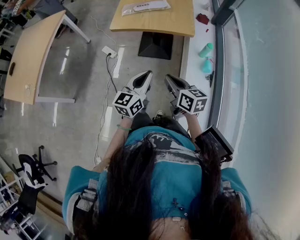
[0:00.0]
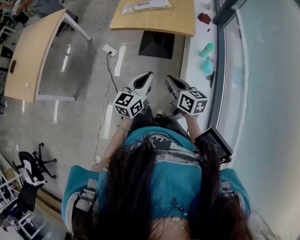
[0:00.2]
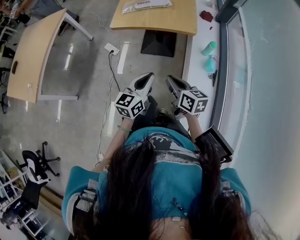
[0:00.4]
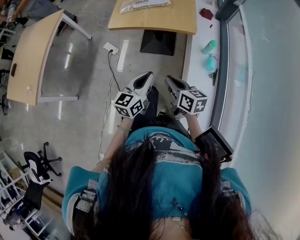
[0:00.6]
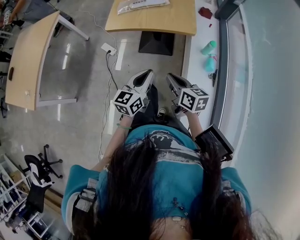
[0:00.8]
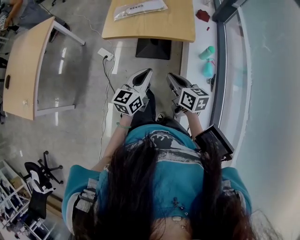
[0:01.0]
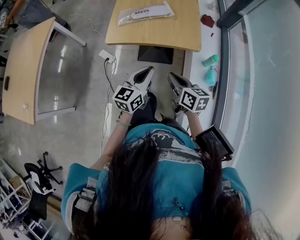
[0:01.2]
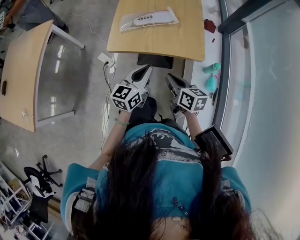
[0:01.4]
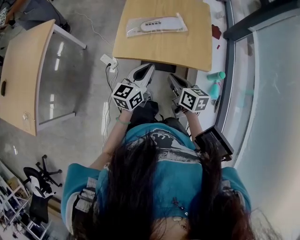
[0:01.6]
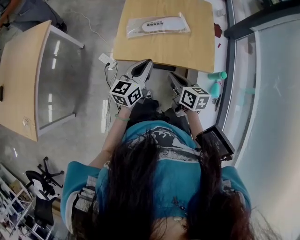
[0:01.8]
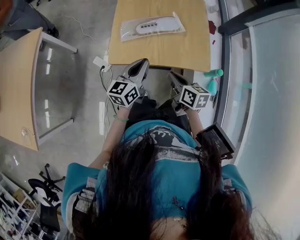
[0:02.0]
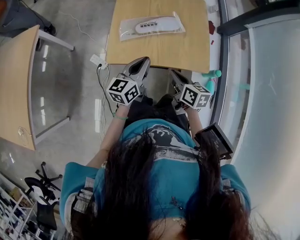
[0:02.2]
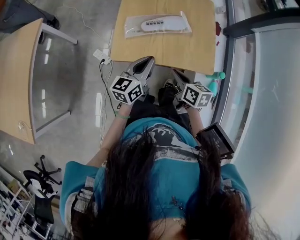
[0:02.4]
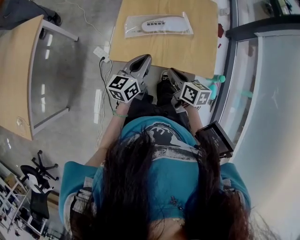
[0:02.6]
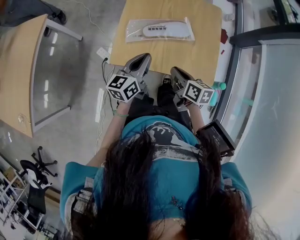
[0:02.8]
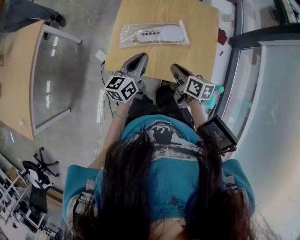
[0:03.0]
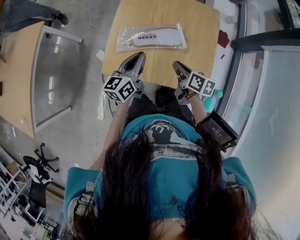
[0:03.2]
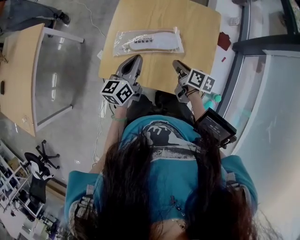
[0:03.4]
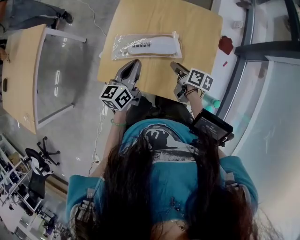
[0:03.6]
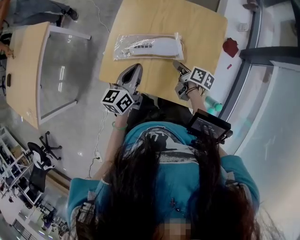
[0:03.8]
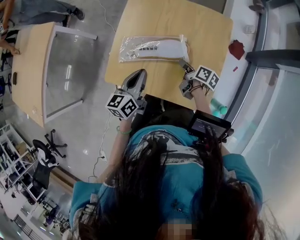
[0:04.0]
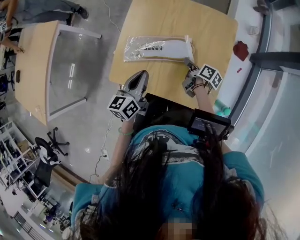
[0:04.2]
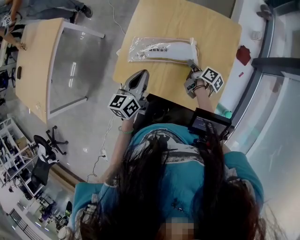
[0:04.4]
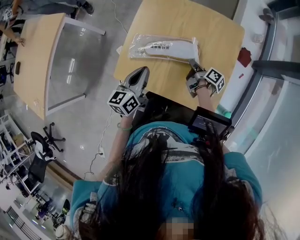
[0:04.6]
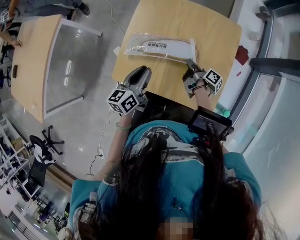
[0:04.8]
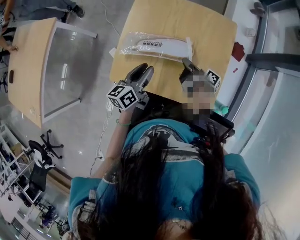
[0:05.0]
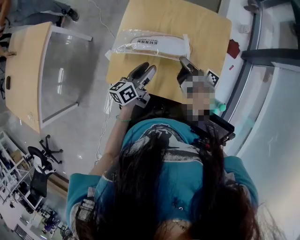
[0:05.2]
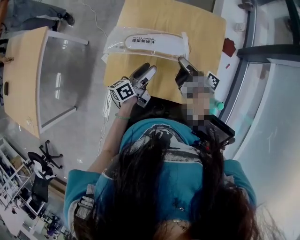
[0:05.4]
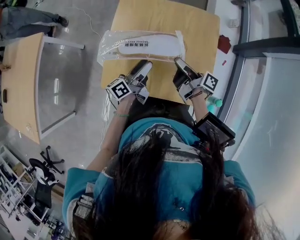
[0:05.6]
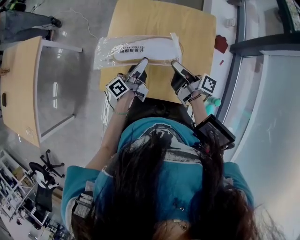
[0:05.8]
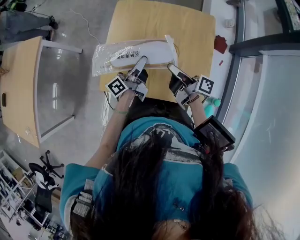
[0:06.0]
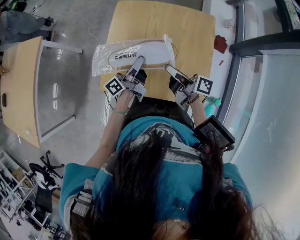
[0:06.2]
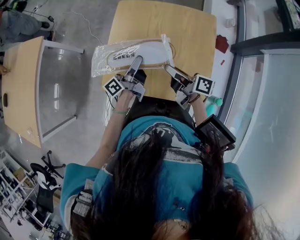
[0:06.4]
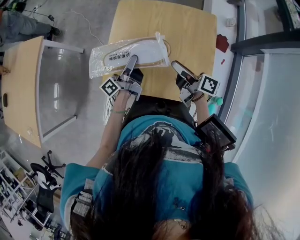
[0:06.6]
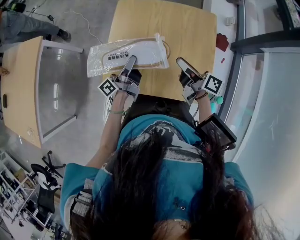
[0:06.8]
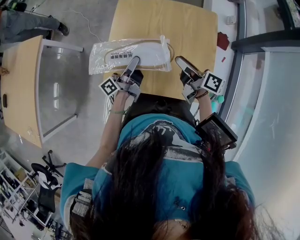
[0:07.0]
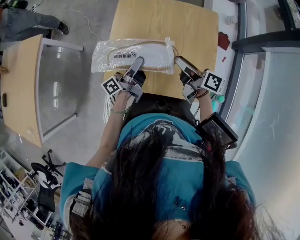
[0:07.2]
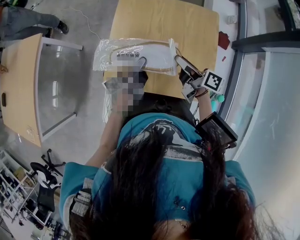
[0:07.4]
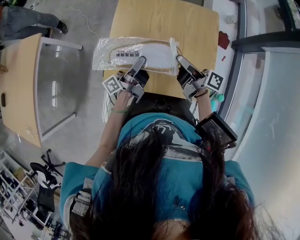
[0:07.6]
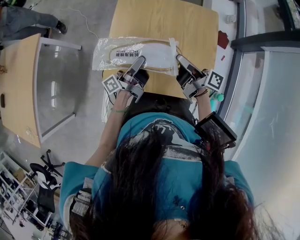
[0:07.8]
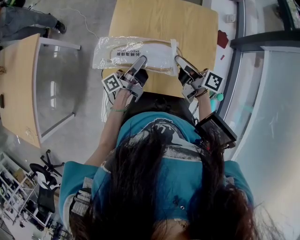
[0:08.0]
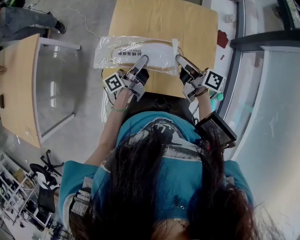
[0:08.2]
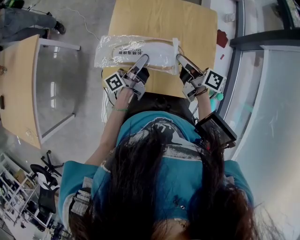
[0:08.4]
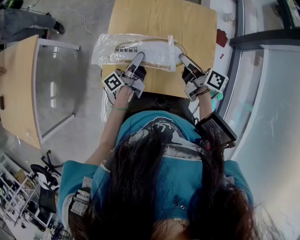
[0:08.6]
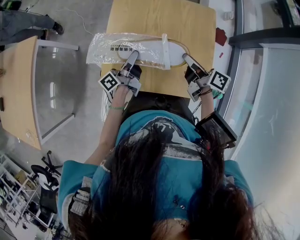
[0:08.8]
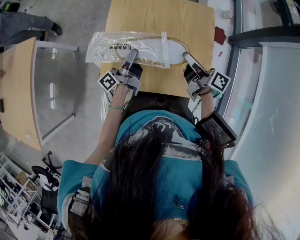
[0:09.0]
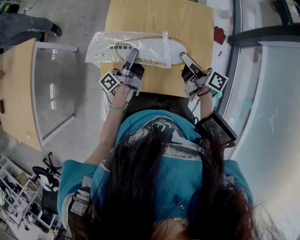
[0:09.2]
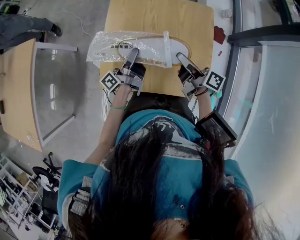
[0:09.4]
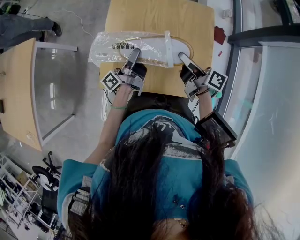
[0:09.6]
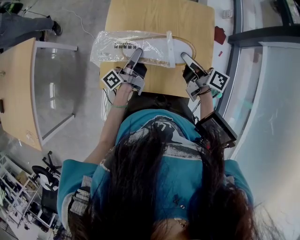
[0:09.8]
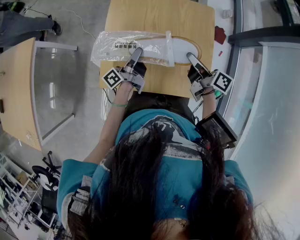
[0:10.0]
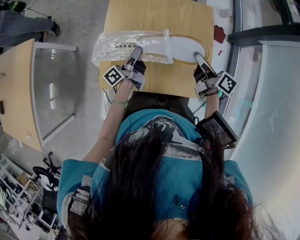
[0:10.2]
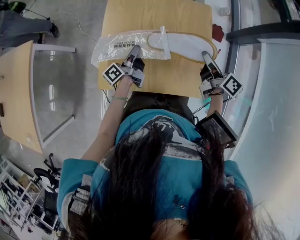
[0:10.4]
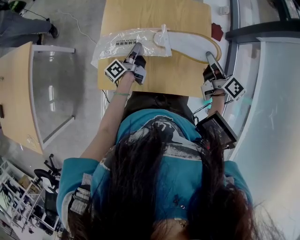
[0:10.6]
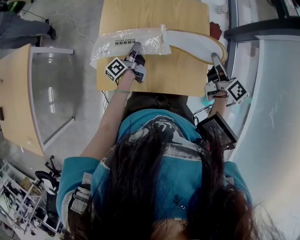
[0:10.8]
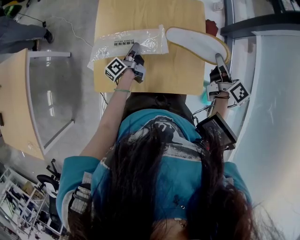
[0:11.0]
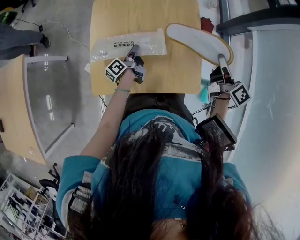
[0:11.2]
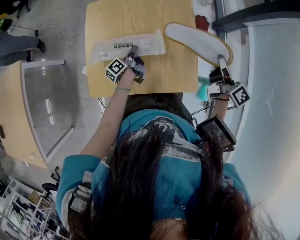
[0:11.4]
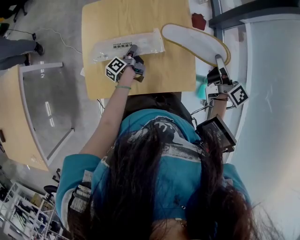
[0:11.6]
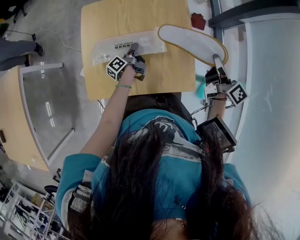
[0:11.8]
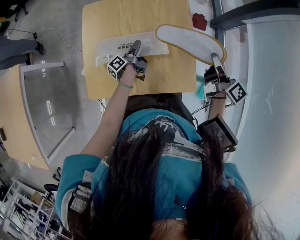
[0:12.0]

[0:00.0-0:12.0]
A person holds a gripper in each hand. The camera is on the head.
0:00.0 to 0:01.6: The grippers both shift forward by about 30 cm.
0:01.6 to 0:03.0: Both grippers travel together forward, some 20 cm.
0:03.0 to 0:04.4: The right gripper travels forward, downward and to the right by about 20 cm, and rotates roughly 30 degrees.
0:04.4 to 0:06.0: The right gripper heads upward, covering roughly 15 cm, and rotates about 30 degrees; the left gripper goes some 5 cm forward, rotates about 50 degrees, and opens.
0:06.0 to 0:07.6: The right gripper opens its fingers.
0:07.6 to 0:09.0: The right gripper closes.
0:09.0 to 0:10.4: The right gripper travels to the right by some 10 cm, and opens, then closes again. The left gripper shifts roughly 5 cm downward.
0:10.4 to 0:12.0: The right gripper shifts approximately 10 cm to the right. Meanwhile the left gripper shifts approximately 10 cm to the right and downward, rotates some 20 degrees, and opens its fingers.

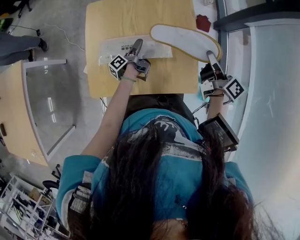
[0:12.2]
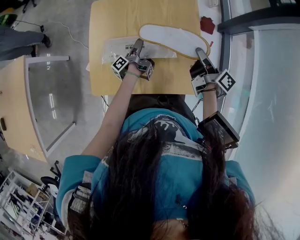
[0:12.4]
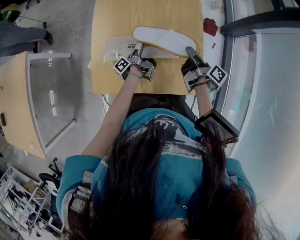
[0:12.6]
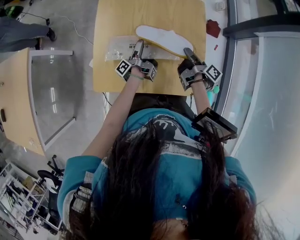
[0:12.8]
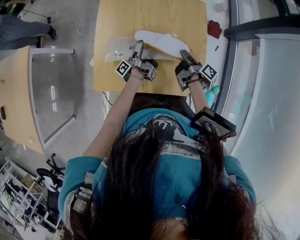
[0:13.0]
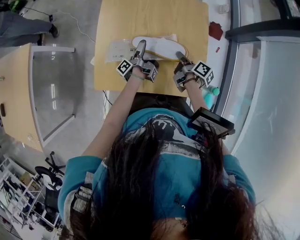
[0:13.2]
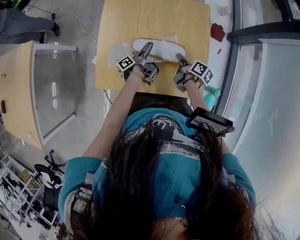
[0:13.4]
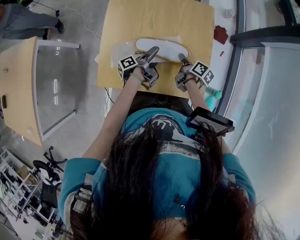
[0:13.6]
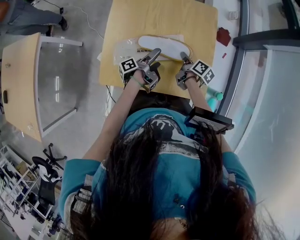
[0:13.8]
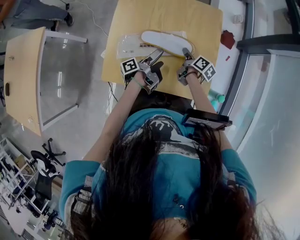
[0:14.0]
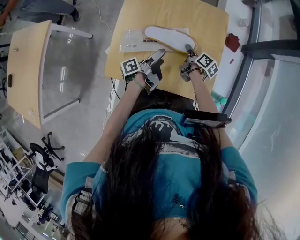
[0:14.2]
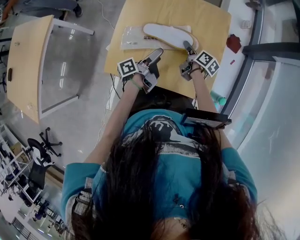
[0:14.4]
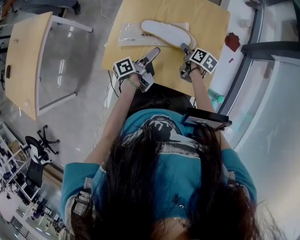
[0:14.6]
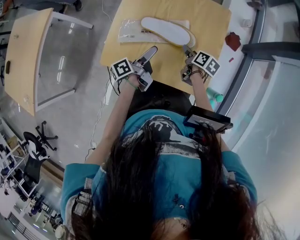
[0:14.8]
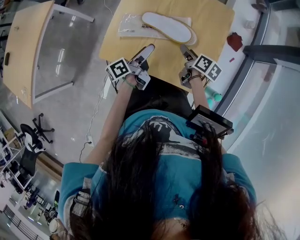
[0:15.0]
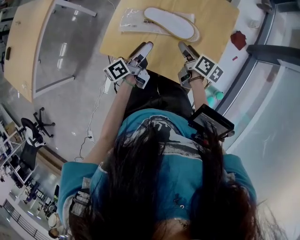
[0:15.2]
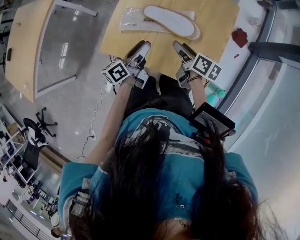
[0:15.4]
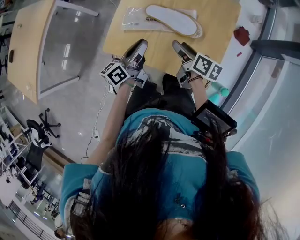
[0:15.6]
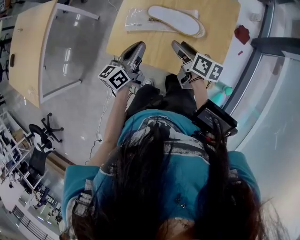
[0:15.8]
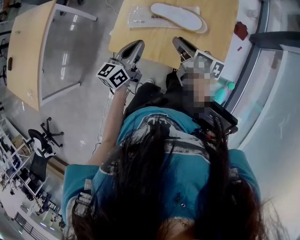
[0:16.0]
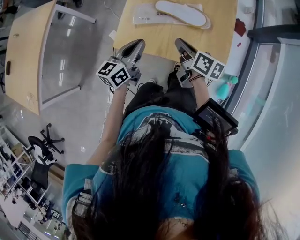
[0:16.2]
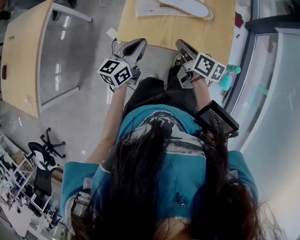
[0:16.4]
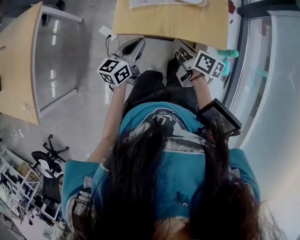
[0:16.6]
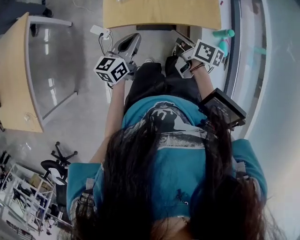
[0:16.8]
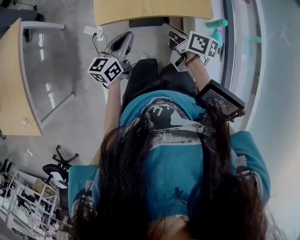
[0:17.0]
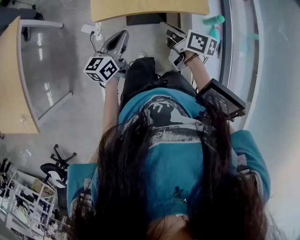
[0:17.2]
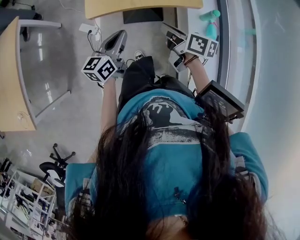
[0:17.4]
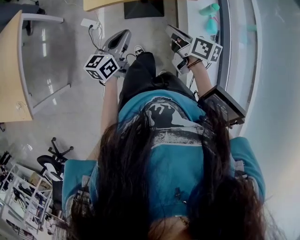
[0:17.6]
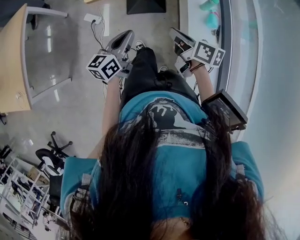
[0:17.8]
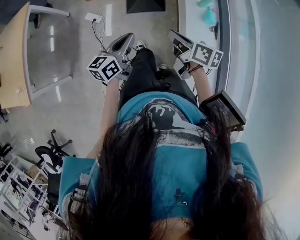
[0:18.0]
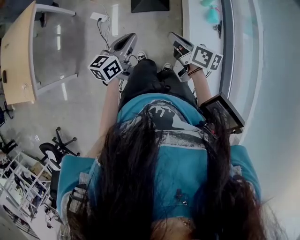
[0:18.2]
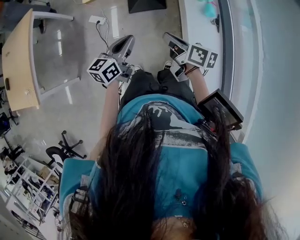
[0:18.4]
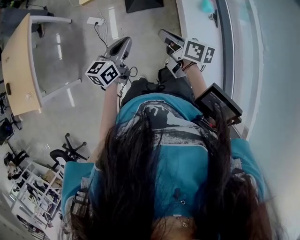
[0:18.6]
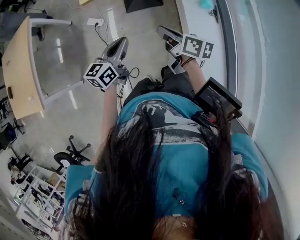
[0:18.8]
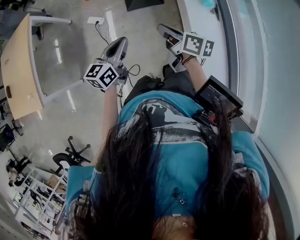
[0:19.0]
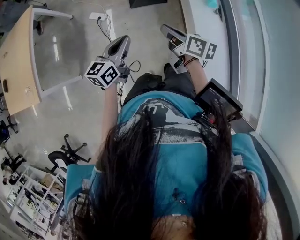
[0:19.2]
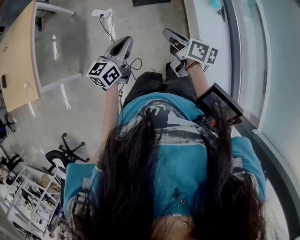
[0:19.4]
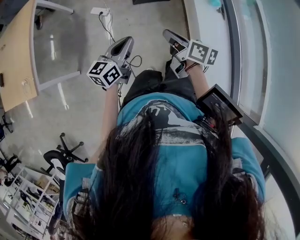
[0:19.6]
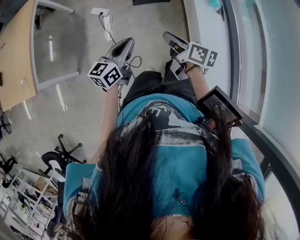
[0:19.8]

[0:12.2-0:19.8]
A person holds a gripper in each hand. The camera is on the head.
0:12.2 to 0:13.8: The right gripper moves downward and to the left, roughly 25 cm, and rotates some 30 degrees, while the left gripper travels backward by roughly 5 cm.
0:13.8 to 0:15.2: The right gripper is displaced upward by roughly 10 cm, rotates some 30 degrees, and opens up. The left gripper shifts some 10 cm upward, backward and to the left, and rotates some 40 degrees.
0:15.2 to 0:16.8: The grippers both shift backward and to the left by approximately 25 cm. The left gripper turns by approximately 50 degrees, and closes. Meanwhile the right gripper closes.
0:16.8 to 0:18.2: Both grippers travel together backward and to the right, roughly 30 cm.
0:18.2 to 0:19.8: The two grippers go approximately 25 cm backward and to the left.

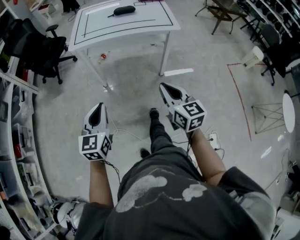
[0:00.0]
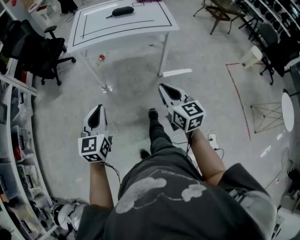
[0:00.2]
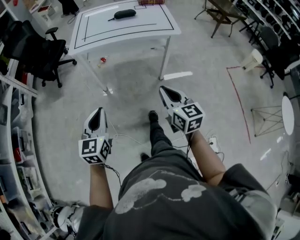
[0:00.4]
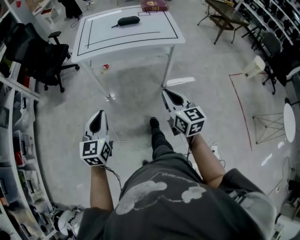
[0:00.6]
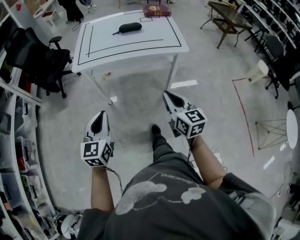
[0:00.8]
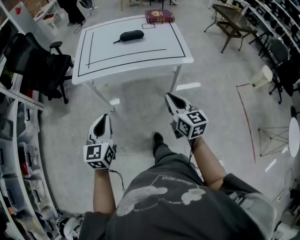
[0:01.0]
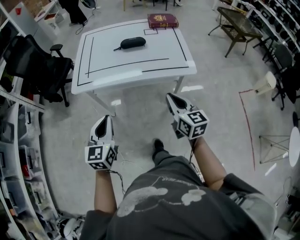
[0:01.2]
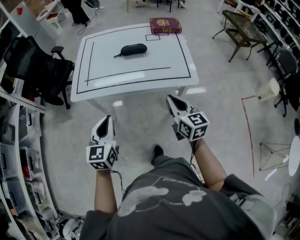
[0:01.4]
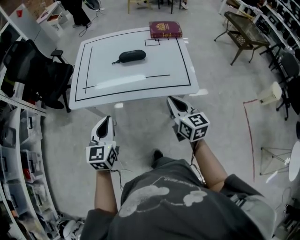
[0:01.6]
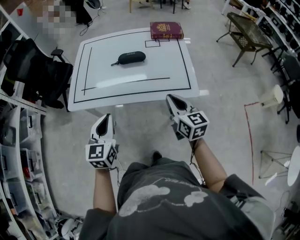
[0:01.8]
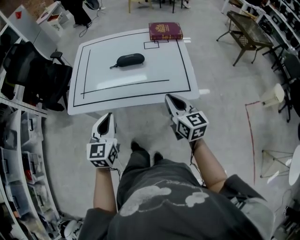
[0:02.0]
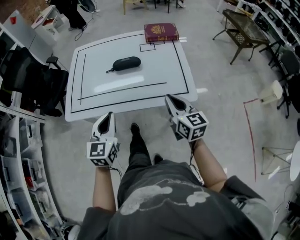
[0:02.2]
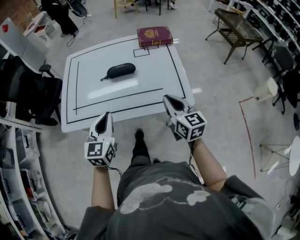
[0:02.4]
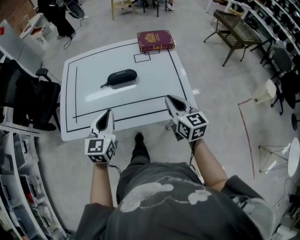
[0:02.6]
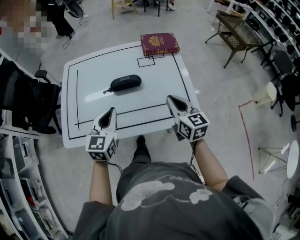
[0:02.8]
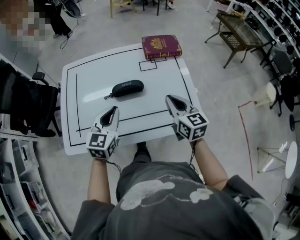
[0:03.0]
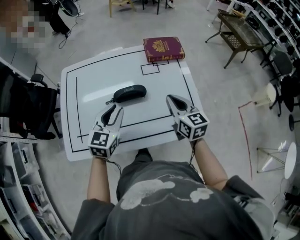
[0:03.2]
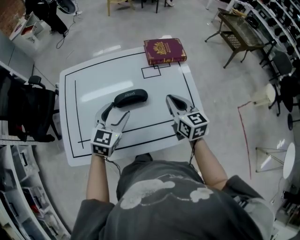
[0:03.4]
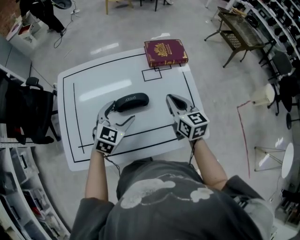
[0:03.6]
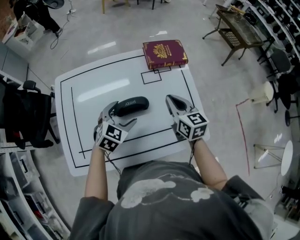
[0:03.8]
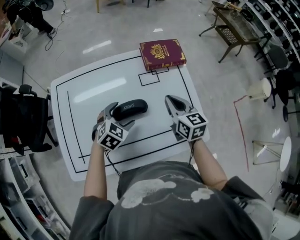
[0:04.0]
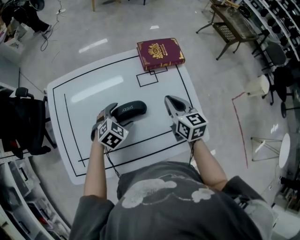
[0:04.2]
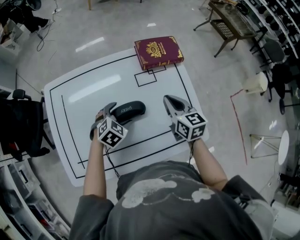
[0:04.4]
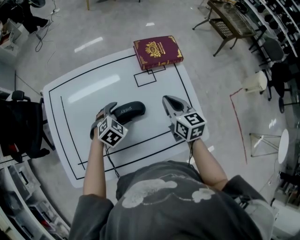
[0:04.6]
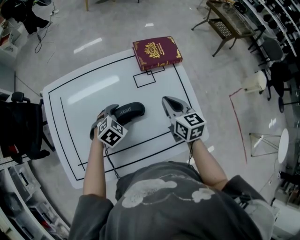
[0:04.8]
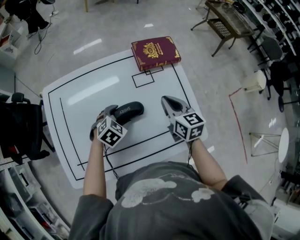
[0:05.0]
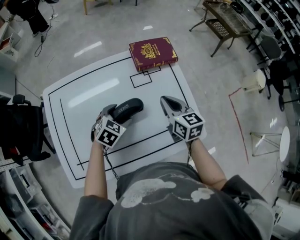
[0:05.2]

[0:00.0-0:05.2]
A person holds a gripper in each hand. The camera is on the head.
0:00.0 to 0:01.8: The two grippers go some 40 cm forward.
0:01.8 to 0:03.4: Both grippers travel together forward, some 30 cm. The left gripper changes its angle by some 30 degrees, and opens up.
0:03.4 to 0:05.2: The right gripper heads forward, covering some 5 cm; the left gripper is displaced downward and forward by about 15 cm, and turns by approximately 30 degrees.
